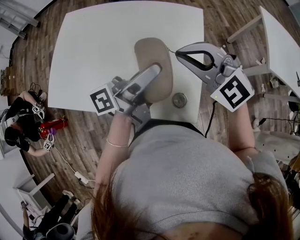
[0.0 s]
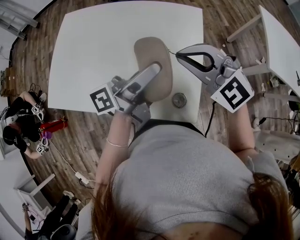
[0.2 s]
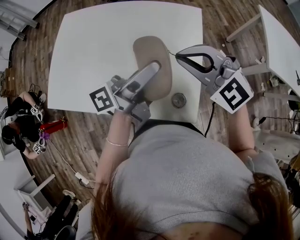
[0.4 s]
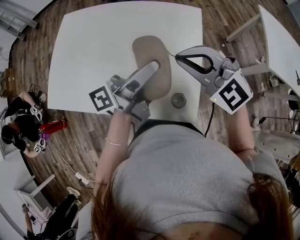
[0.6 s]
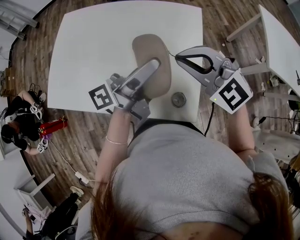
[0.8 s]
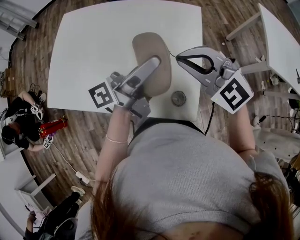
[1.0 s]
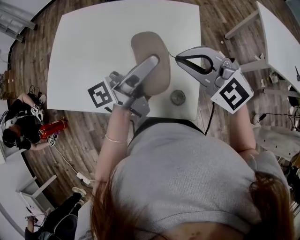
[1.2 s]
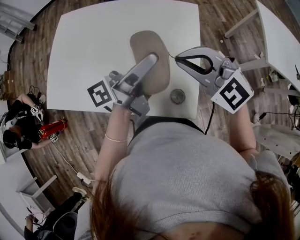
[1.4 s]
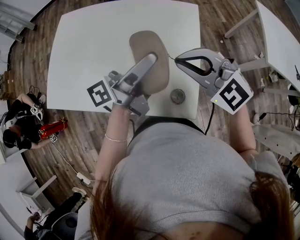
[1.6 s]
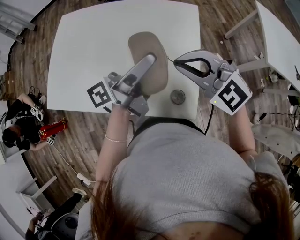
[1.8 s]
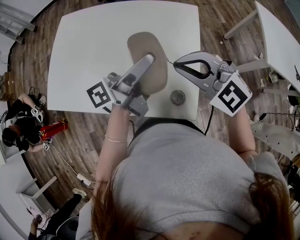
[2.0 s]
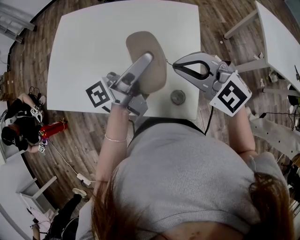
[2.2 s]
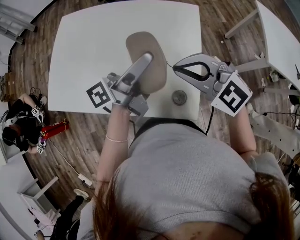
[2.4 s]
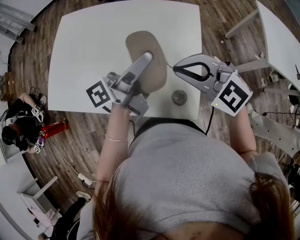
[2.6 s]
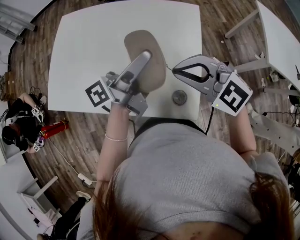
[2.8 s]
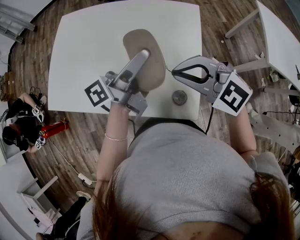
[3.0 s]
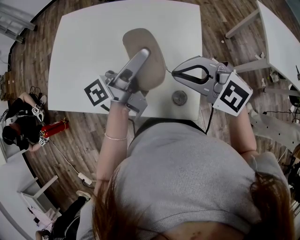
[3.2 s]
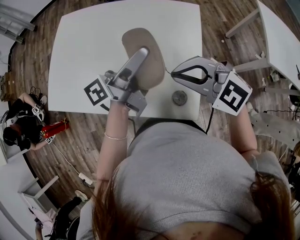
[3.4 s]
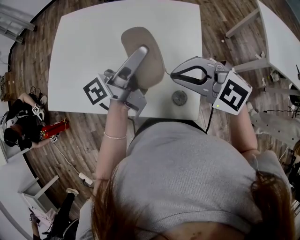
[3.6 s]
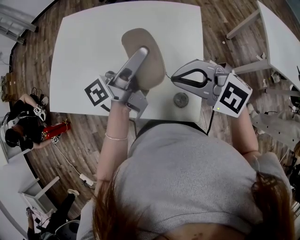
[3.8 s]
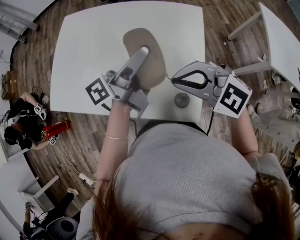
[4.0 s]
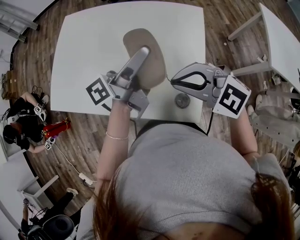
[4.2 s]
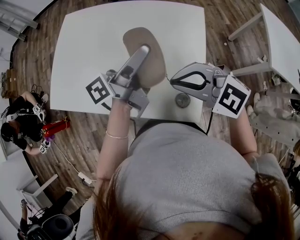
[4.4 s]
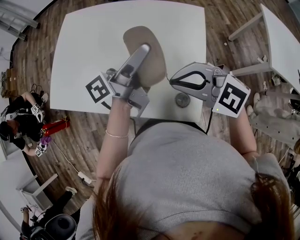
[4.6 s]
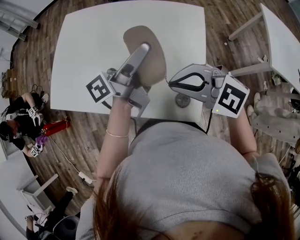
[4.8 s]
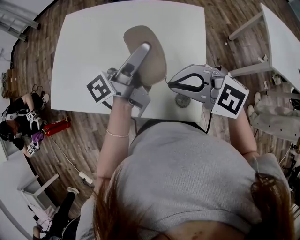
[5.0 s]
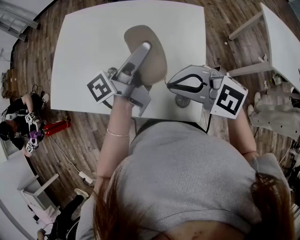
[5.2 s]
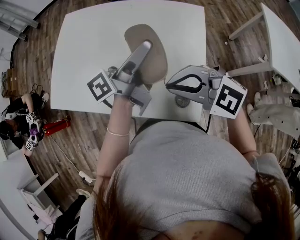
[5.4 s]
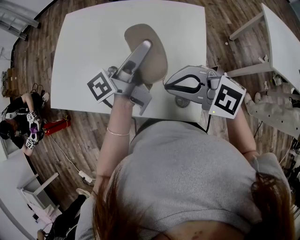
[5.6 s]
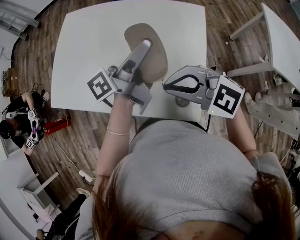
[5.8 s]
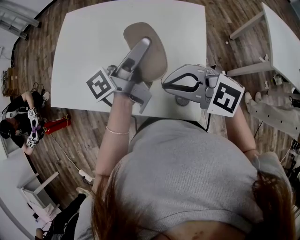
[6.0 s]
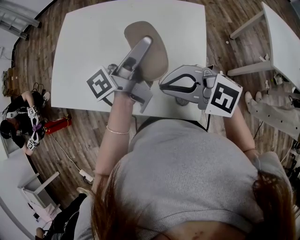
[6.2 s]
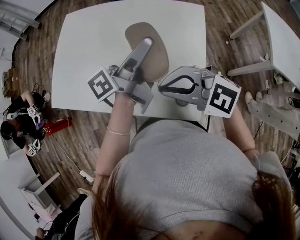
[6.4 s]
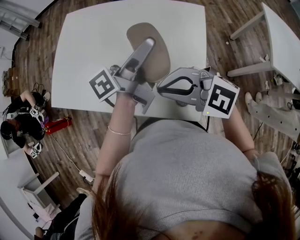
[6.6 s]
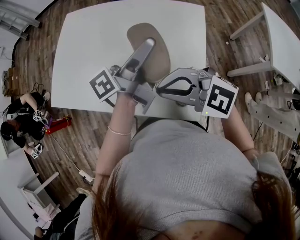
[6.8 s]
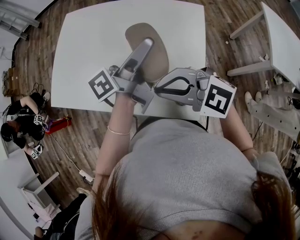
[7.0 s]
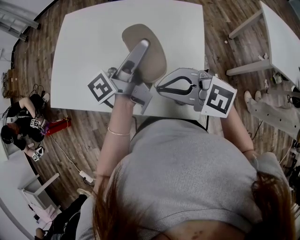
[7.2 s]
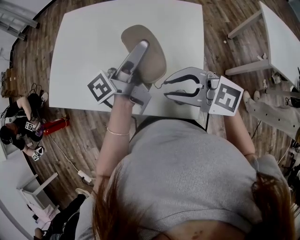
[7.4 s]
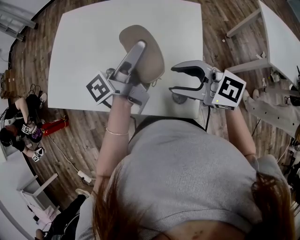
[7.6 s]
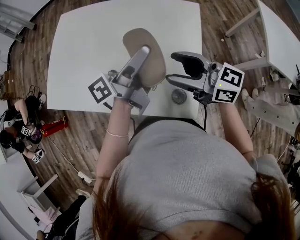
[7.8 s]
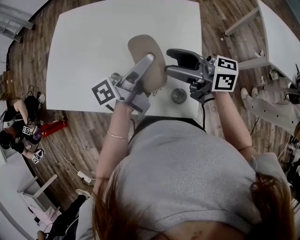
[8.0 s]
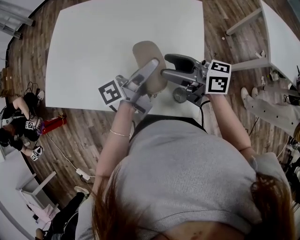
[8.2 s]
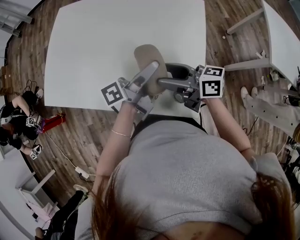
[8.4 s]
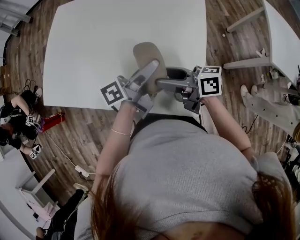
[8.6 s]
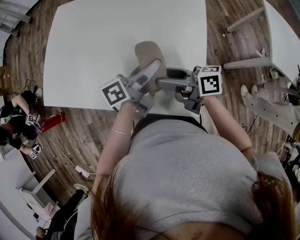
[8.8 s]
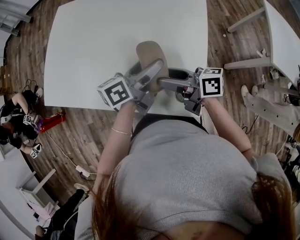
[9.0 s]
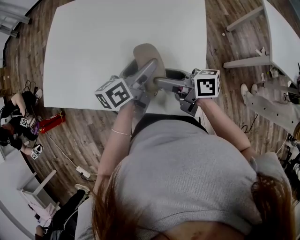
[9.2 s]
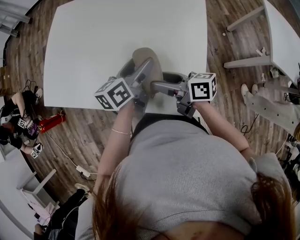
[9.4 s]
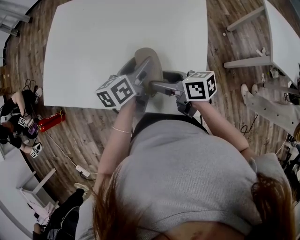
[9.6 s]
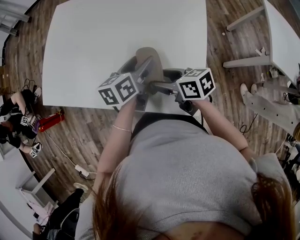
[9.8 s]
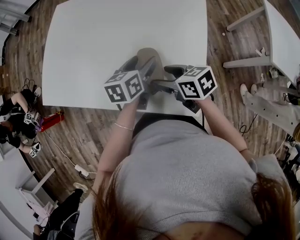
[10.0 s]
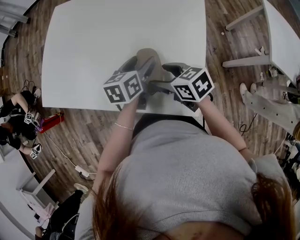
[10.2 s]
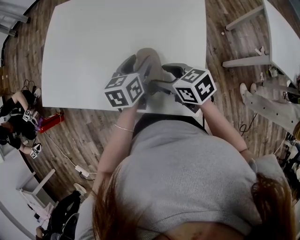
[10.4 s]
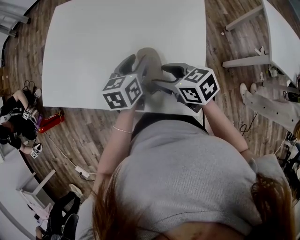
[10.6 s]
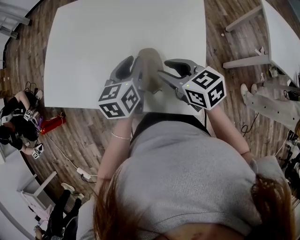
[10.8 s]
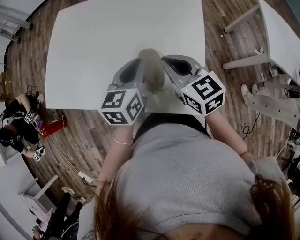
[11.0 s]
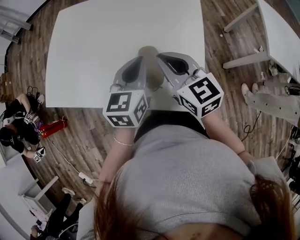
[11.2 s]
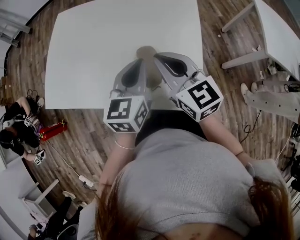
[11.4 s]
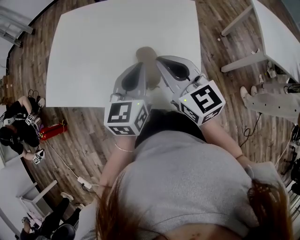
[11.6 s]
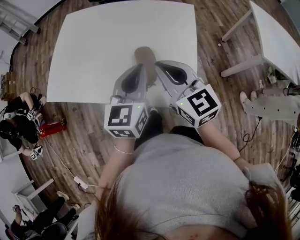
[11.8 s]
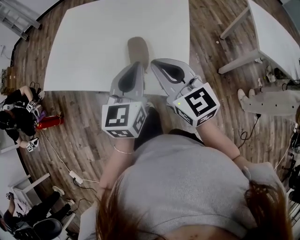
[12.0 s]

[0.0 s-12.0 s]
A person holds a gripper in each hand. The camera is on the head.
0.0 to 3.0 s: The grippers move only a little.
3.0 to 6.0 s: The grippers make only small movements.
6.0 to 7.6 s: The right gripper changes its angle by approximately 30 degrees, and opens up.
7.6 to 9.0 s: The two grippers go about 10 cm downward. The left gripper swivels about 30 degrees, while the right gripper rotates around the line of its fingers by some 50 degrees, clockwise from behind.
9.0 to 10.4 s: Both grippers travel together downward, about 5 cm. The left gripper changes its angle by about 40 degrees. The right gripper tilts its fingers roughly 30 degrees downward.
10.4 to 12.0 s: The right gripper is displaced upward and backward by approximately 20 cm, tips its fingers upward by some 30 degrees, and closes up. Meanwhile the left gripper heads backward and upward, covering roughly 20 cm, rotates roughly 30 degrees, and closes its fingers.

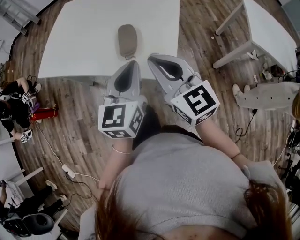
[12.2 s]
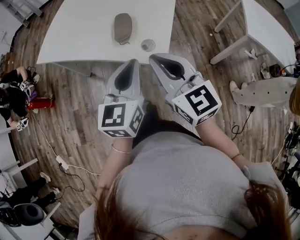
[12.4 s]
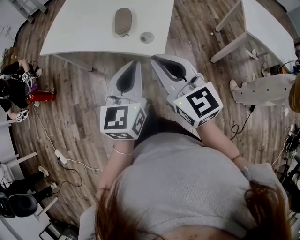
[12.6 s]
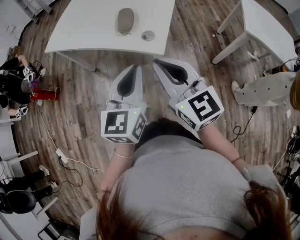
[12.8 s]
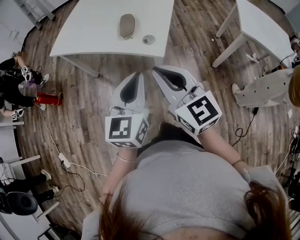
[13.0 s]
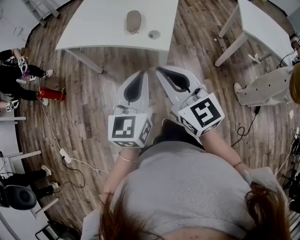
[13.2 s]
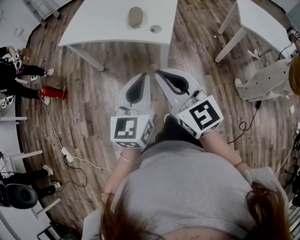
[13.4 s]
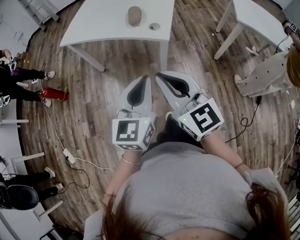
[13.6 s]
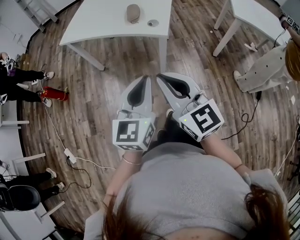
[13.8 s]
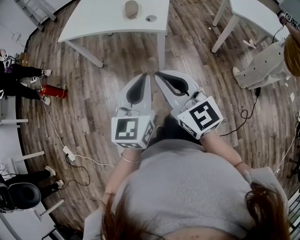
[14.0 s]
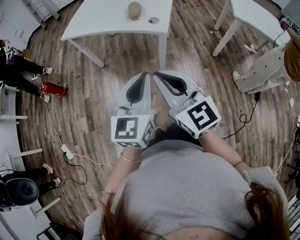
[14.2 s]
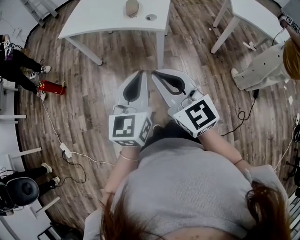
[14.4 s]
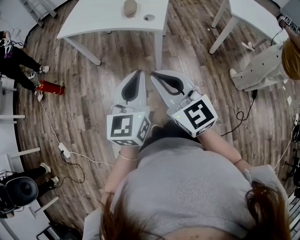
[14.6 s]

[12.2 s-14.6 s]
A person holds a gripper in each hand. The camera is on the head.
12.2 to 13.4 s: The grippers both shift backward by roughly 25 cm.
13.4 to 14.6 s: The two grippers go roughly 10 cm backward.

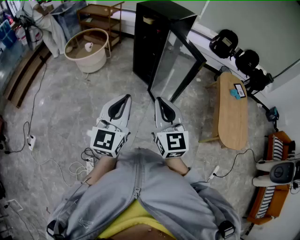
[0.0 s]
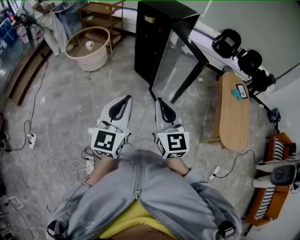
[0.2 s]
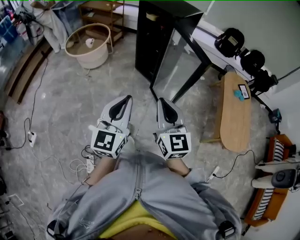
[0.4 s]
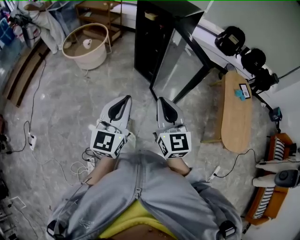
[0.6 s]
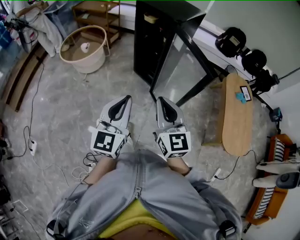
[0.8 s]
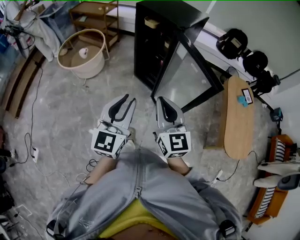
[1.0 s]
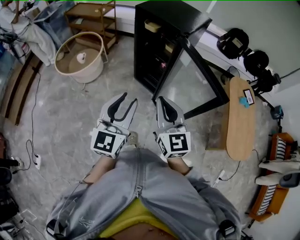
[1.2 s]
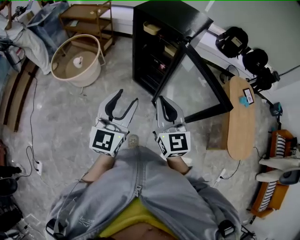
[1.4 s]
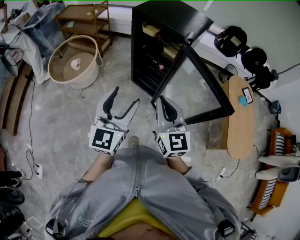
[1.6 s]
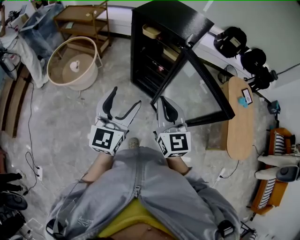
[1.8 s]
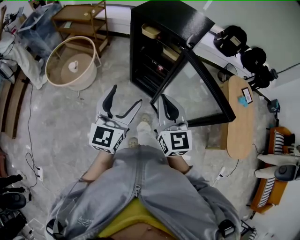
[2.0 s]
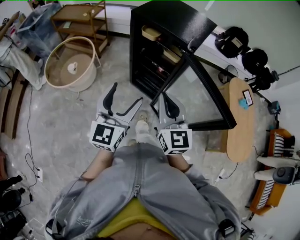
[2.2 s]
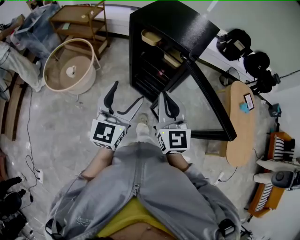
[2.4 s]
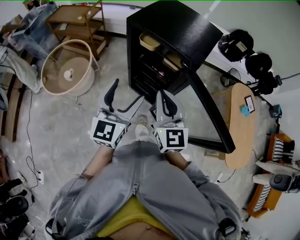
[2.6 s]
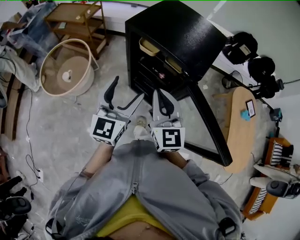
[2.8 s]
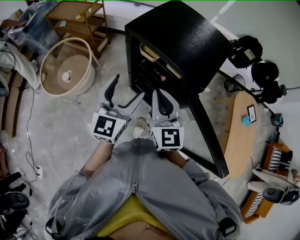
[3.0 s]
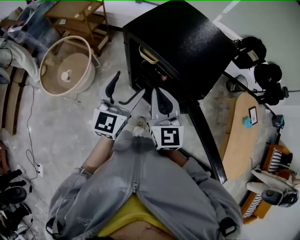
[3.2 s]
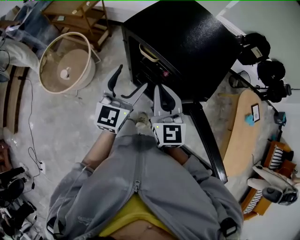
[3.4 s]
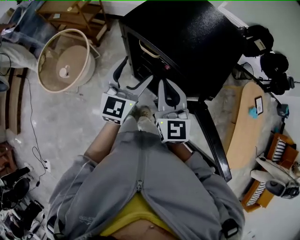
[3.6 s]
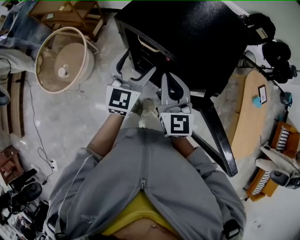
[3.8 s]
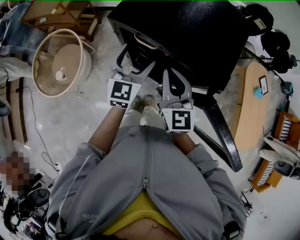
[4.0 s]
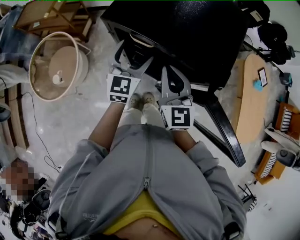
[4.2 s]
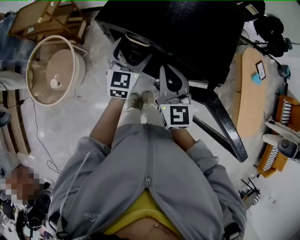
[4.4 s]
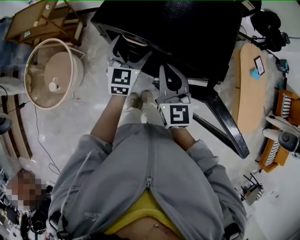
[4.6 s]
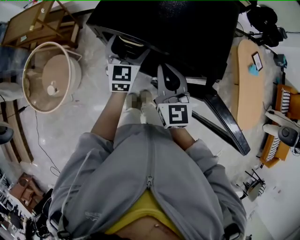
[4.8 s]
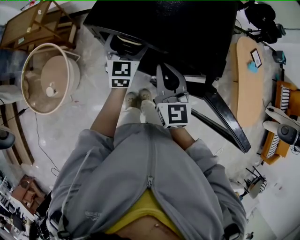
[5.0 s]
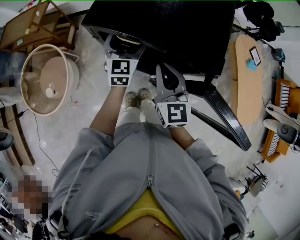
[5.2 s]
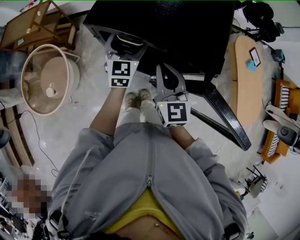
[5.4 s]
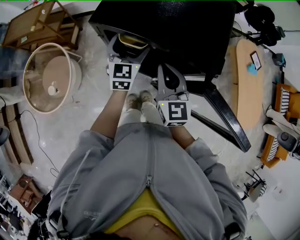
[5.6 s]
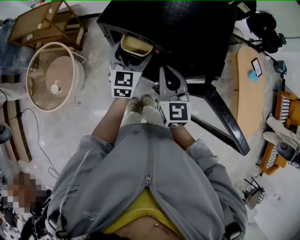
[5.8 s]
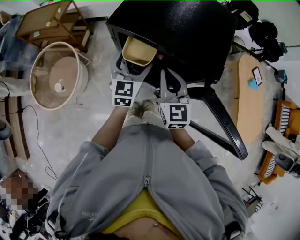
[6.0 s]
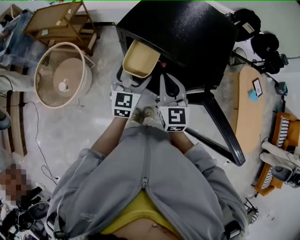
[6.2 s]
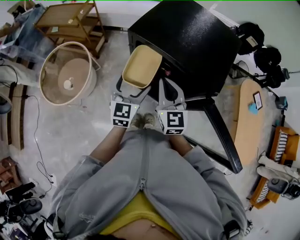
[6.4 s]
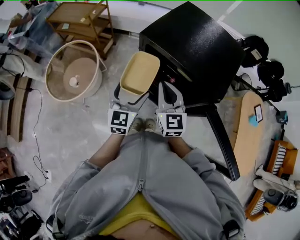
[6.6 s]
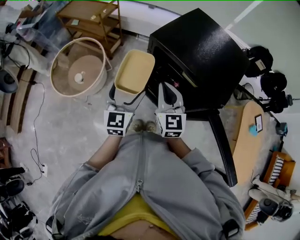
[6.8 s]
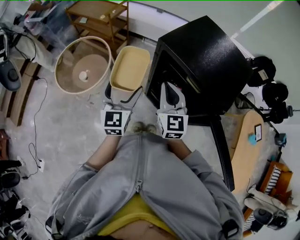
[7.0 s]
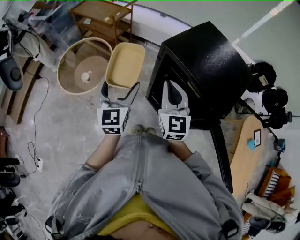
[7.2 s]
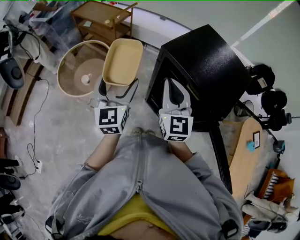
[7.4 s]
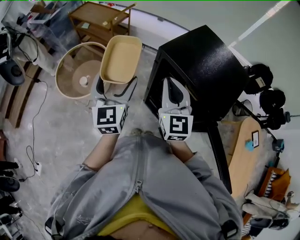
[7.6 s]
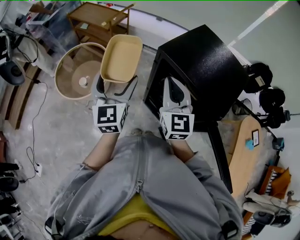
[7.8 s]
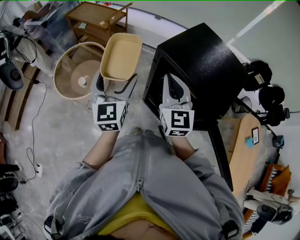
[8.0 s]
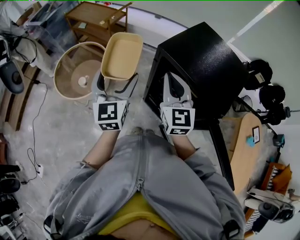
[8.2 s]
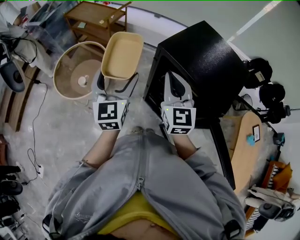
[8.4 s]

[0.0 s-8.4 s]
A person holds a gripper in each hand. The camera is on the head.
0.0 to 1.4 s: Both grippers travel together forward, approximately 35 cm. The left gripper opens.
1.4 to 2.8 s: The grippers both shift forward by approximately 30 cm.
2.8 to 4.2 s: Both grippers travel together forward and downward, about 20 cm.
5.6 to 7.0 s: The right gripper moves approximately 15 cm, and changes its angle by roughly 20 degrees. Meanwhile the left gripper moves roughly 25 cm, and turns by approximately 30 degrees.
7.0 to 8.4 s: Both grippers move upward, some 5 cm.

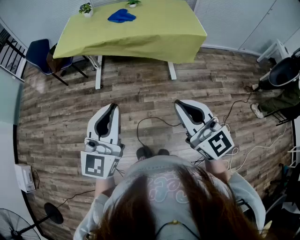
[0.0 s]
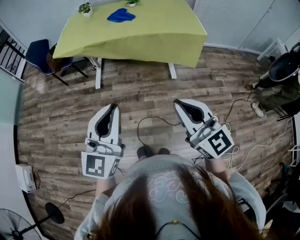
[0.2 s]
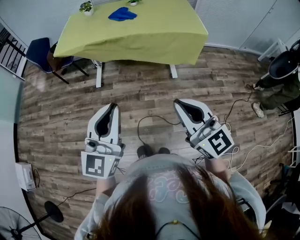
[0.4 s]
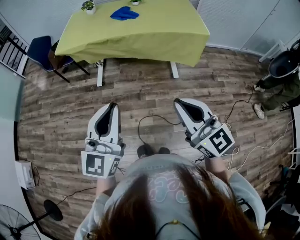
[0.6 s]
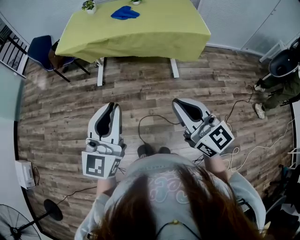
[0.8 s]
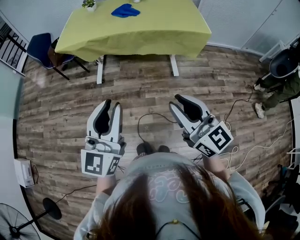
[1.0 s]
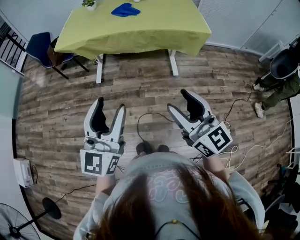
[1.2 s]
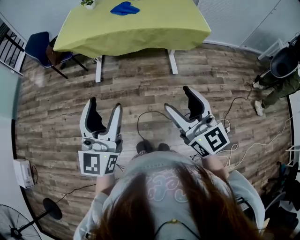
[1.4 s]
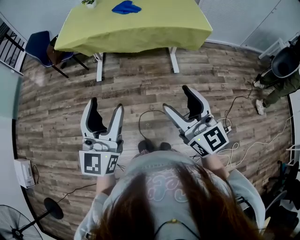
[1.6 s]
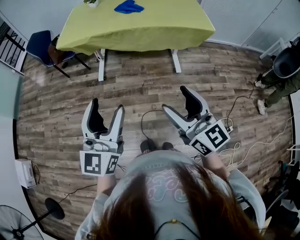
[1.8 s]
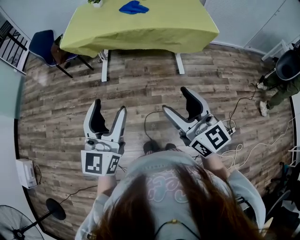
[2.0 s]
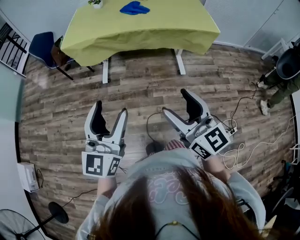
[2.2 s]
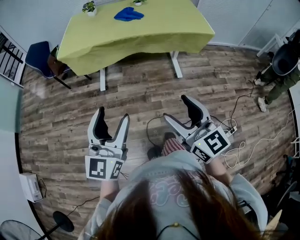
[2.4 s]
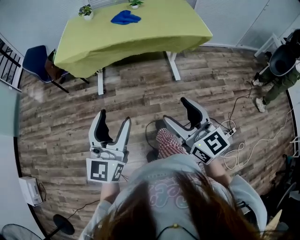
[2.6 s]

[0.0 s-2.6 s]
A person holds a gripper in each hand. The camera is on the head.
0.0 to 1.2 s: The right gripper opens its fingers. The left gripper opens its fingers.
1.2 to 2.6 s: Both grippers travel together to the left, some 5 cm.
